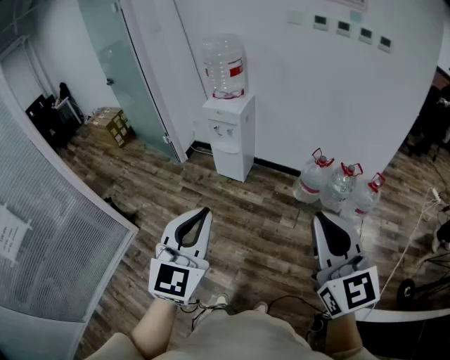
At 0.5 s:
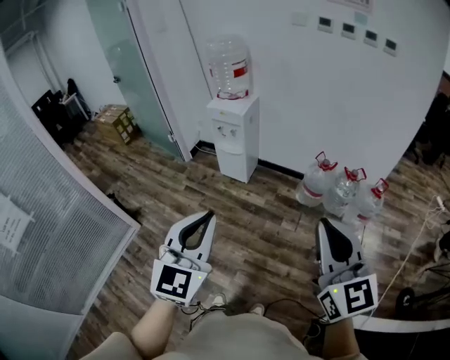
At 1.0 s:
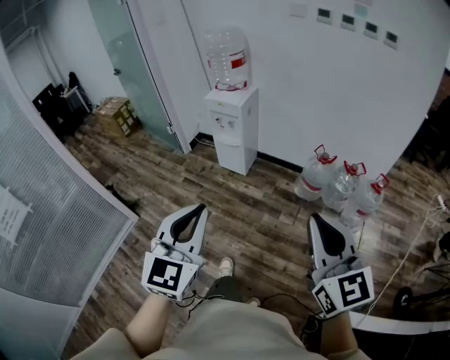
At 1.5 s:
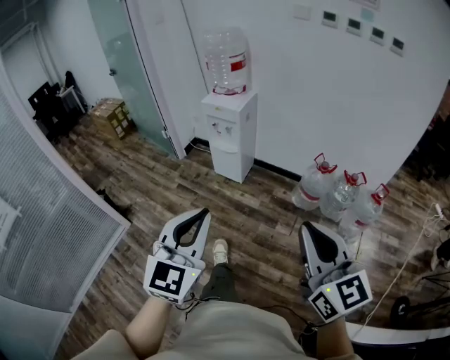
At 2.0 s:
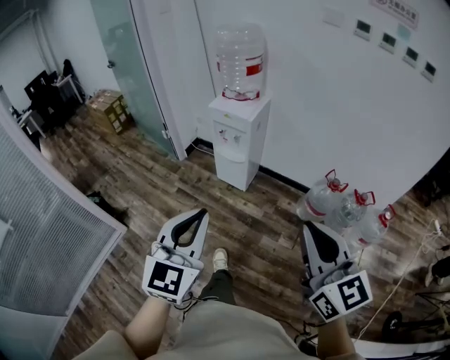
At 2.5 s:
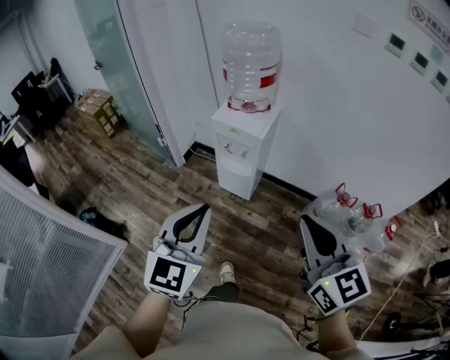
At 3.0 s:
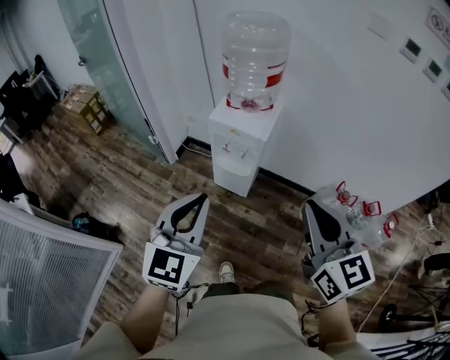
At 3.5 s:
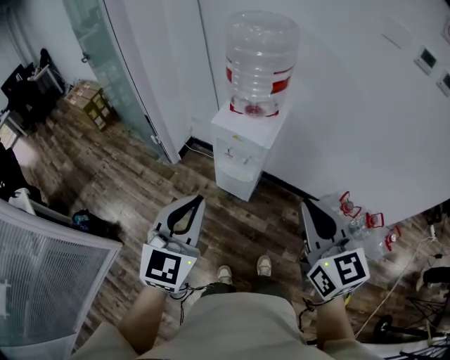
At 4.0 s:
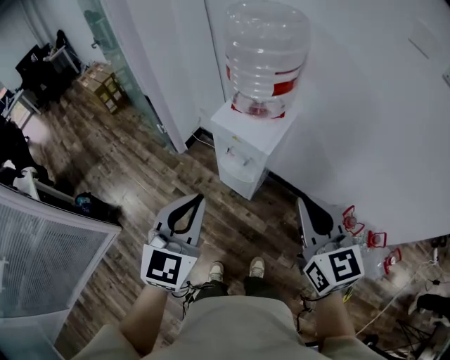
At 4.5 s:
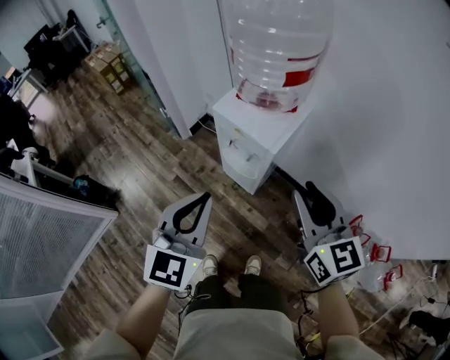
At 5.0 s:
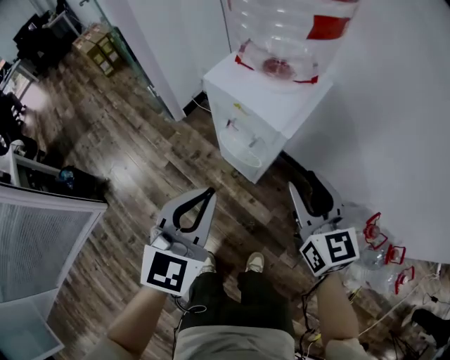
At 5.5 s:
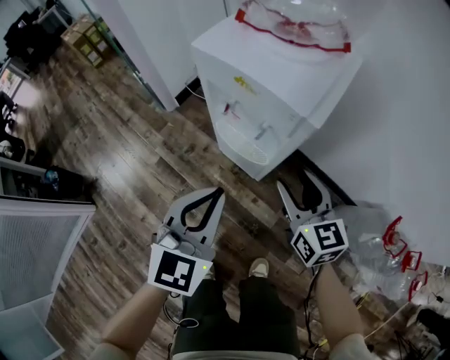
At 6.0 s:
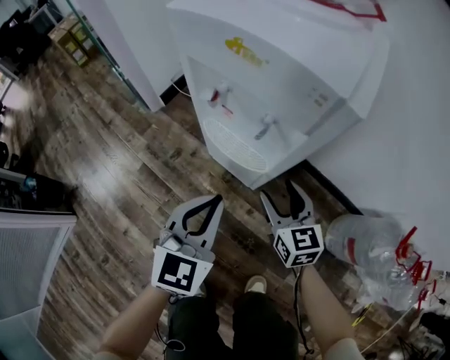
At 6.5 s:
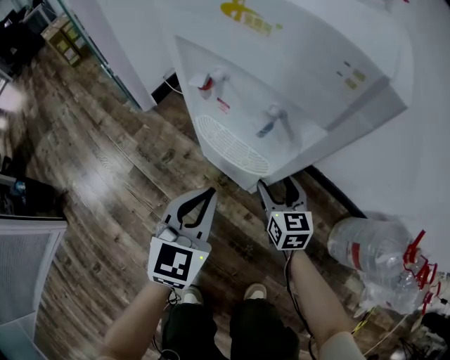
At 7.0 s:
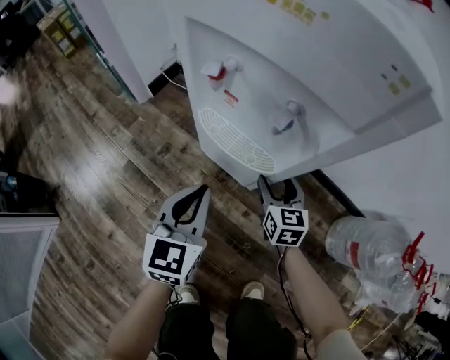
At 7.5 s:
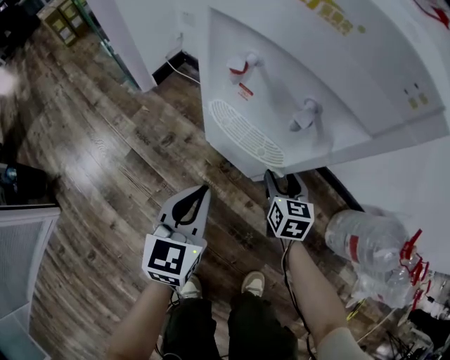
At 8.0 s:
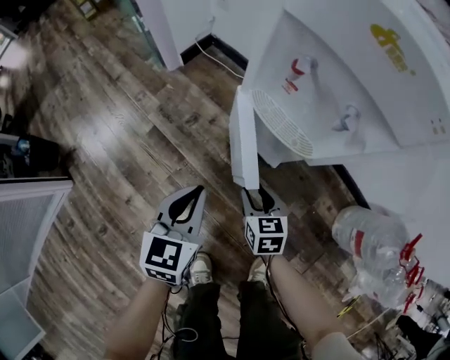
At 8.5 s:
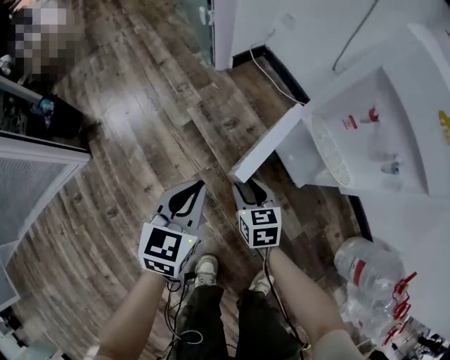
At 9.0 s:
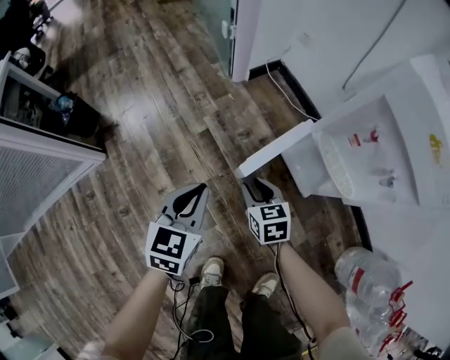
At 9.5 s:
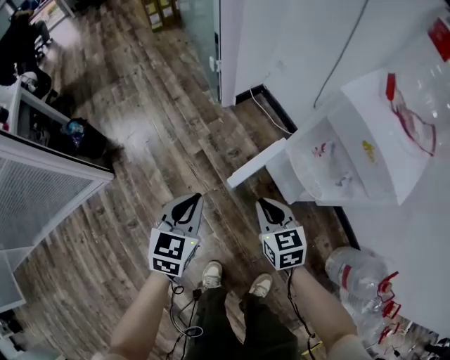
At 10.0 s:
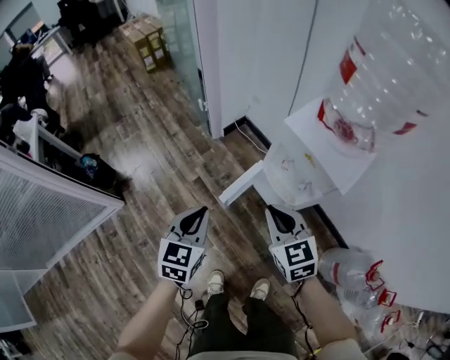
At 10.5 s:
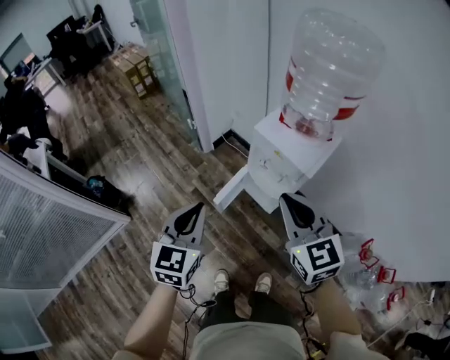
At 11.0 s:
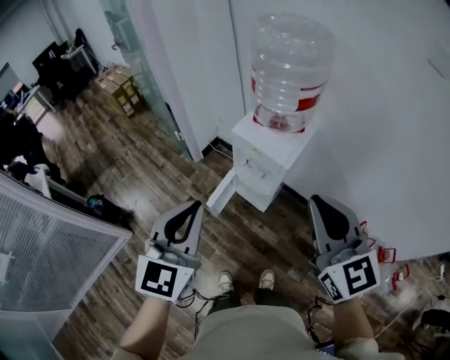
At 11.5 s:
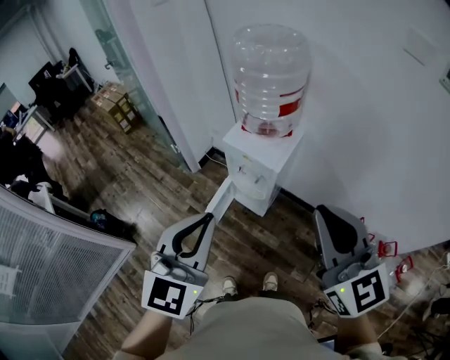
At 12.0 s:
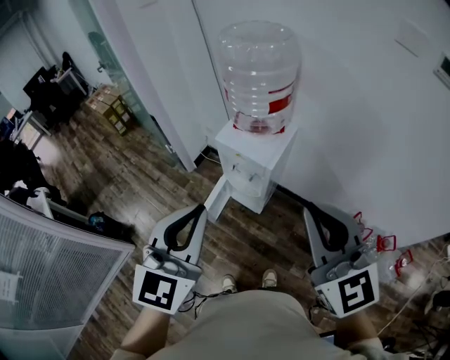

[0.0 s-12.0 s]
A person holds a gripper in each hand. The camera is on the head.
0.0 to 2.0 s: The two grippers go approximately 20 cm forward.
2.0 to 4.0 s: The two grippers go about 40 cm forward.
4.0 to 6.0 s: The grippers both shift downward by some 60 cm. The right gripper opens its fingers.
6.0 to 8.0 s: The left gripper moves to the left and downward, about 20 cm, and turns by roughly 30 degrees; the right gripper travels downward, to the left and backward by approximately 20 cm, and swivels about 20 degrees.
8.0 to 10.0 s: Both grippers travel together upward, approximately 40 cm. The right gripper rotates about 30 degrees, and closes its fingers.
10.0 to 12.0 s: The left gripper is displaced upward and to the right by roughly 40 cm, and swivels approximately 30 degrees, while the right gripper is displaced upward, backward and to the right by some 50 cm, and turns by approximately 30 degrees.

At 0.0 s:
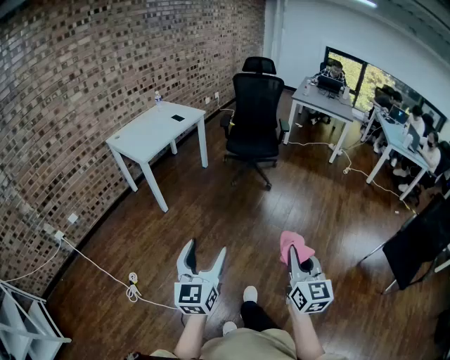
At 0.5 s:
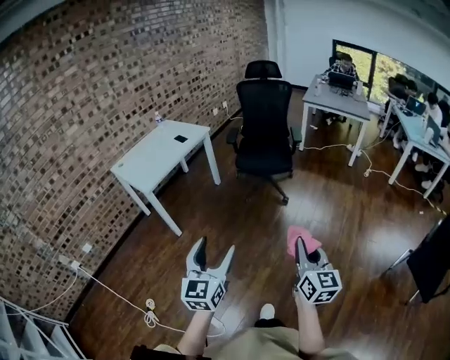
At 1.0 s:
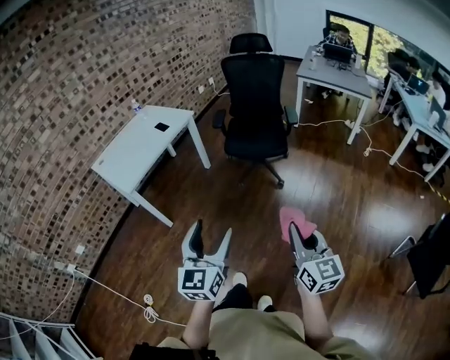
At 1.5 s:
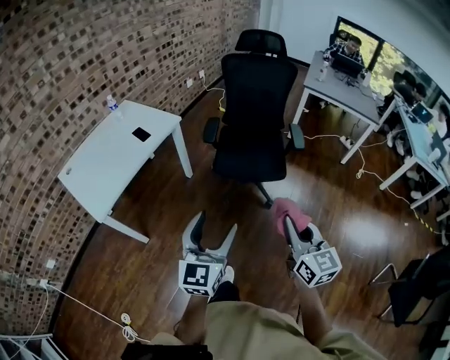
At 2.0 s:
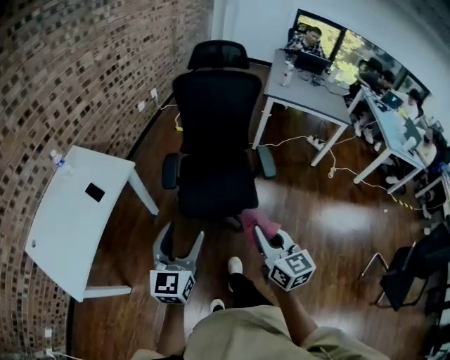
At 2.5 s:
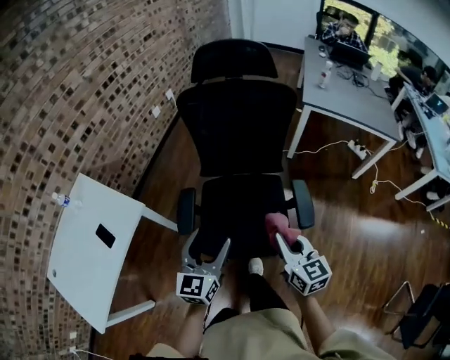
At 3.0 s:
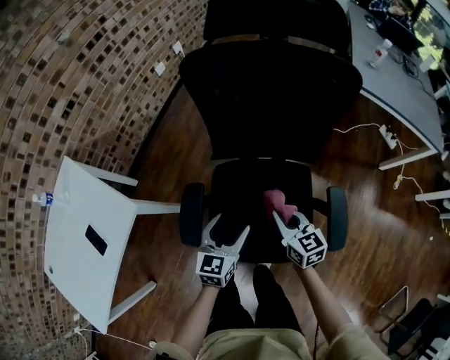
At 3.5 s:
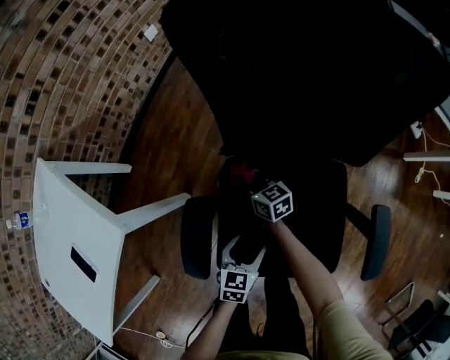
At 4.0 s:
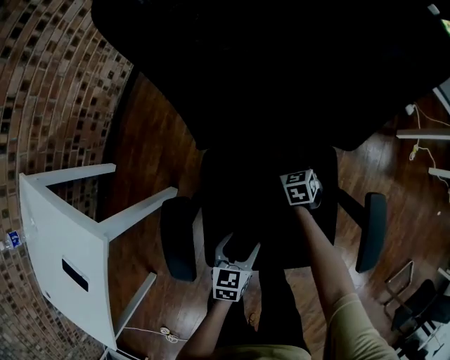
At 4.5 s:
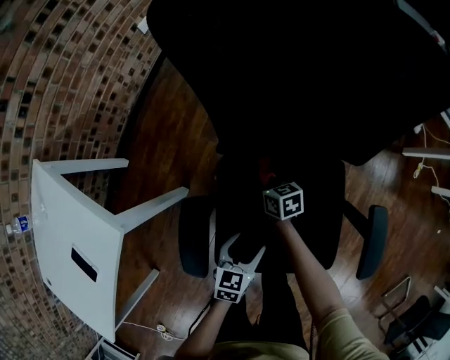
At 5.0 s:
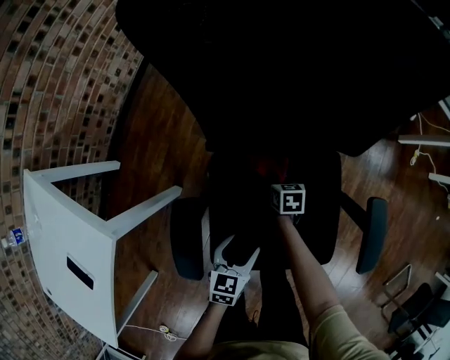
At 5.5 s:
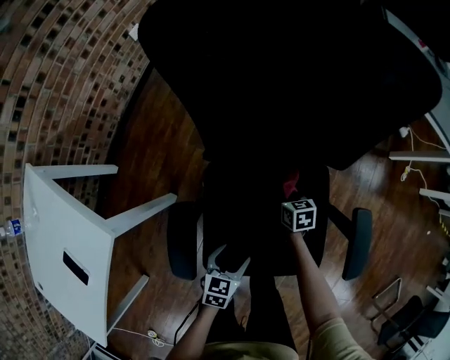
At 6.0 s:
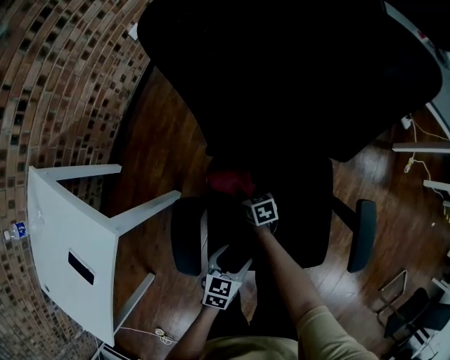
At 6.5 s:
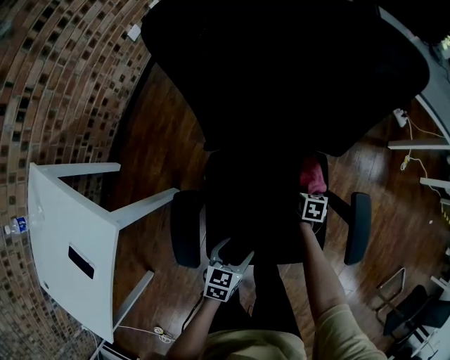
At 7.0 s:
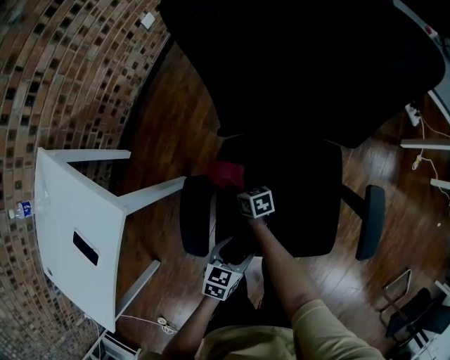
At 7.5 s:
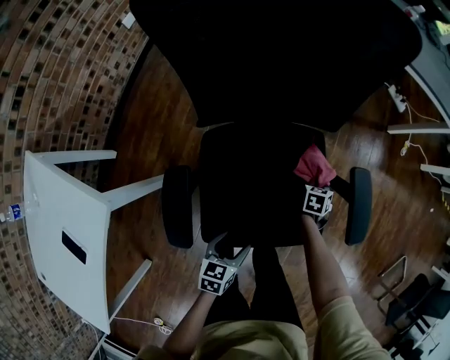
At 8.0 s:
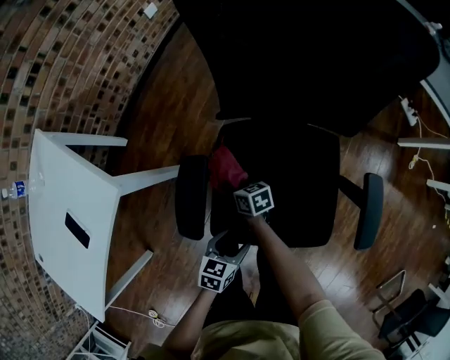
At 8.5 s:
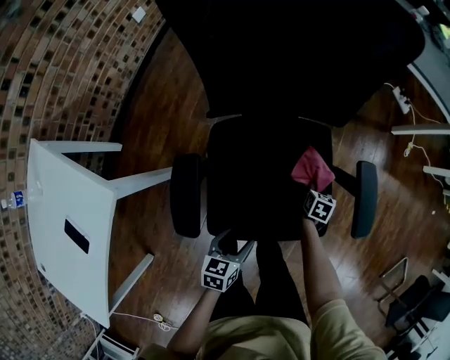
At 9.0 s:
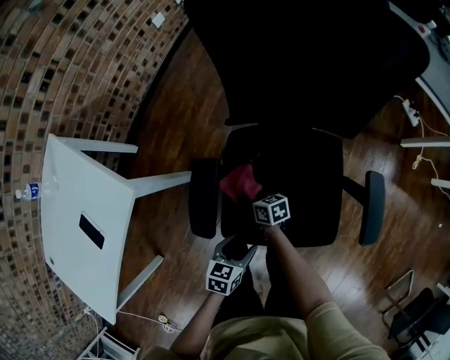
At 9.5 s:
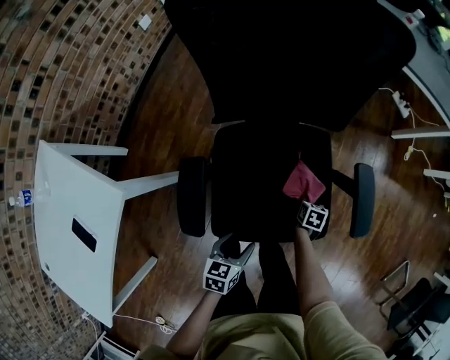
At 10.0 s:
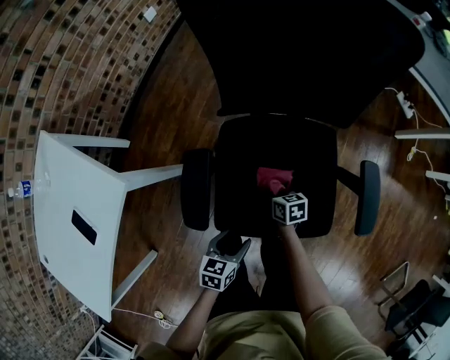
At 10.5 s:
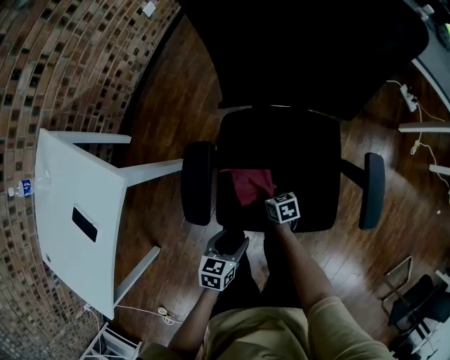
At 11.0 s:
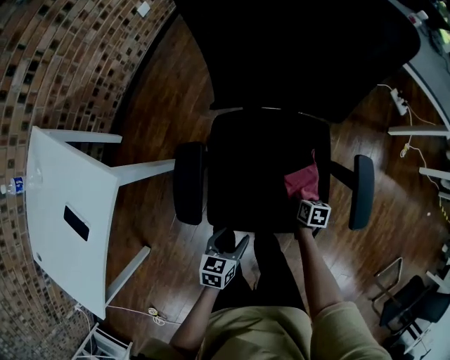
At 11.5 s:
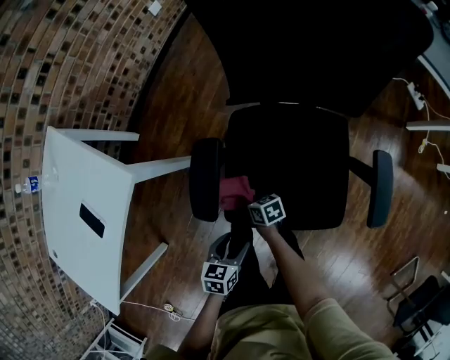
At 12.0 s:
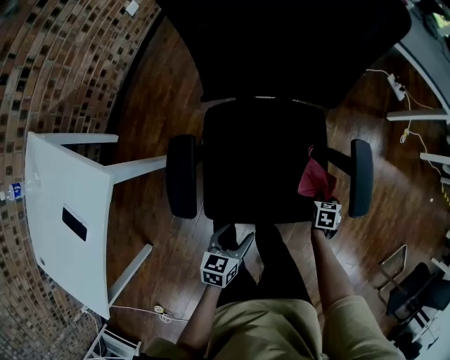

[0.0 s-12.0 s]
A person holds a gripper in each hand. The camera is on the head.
0.0 to 2.0 s: Both grippers are carried forward, about 90 cm.
2.0 to 4.0 s: The pair of grippers is taken some 50 cm. The left gripper goes roughly 50 cm downward, and angles its fingers downward, by approximately 40 degrees, while the right gripper points its fingers some 50 degrees further downward.
4.0 to 6.0 s: The left gripper moves approximately 5 cm. The right gripper moves left and right over approximately 15 cm, changing direction 2 times, and turns by approximately 30 degrees.
6.0 to 8.0 s: The left gripper changes place by about 5 cm.
8.0 to 10.0 s: The right gripper moves up and down over approximately 5 cm, changing direction 3 times.
10.0 to 12.0 s: The right gripper shifts by about 30 cm, and rotates about 40 degrees.

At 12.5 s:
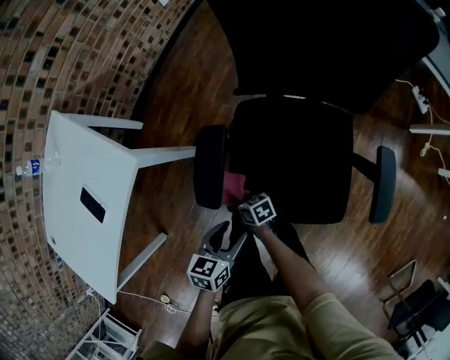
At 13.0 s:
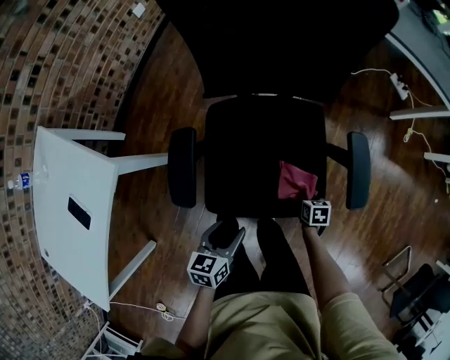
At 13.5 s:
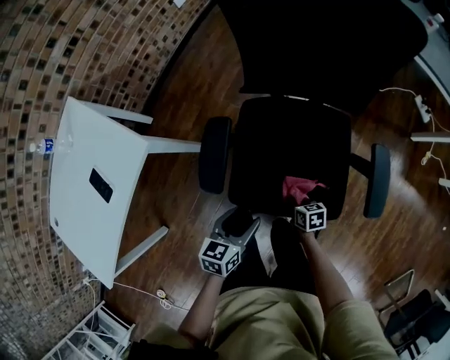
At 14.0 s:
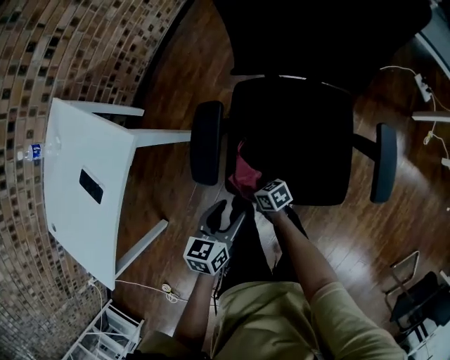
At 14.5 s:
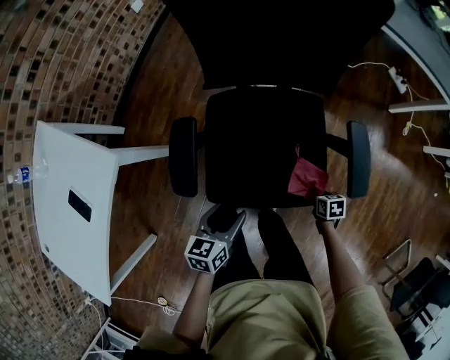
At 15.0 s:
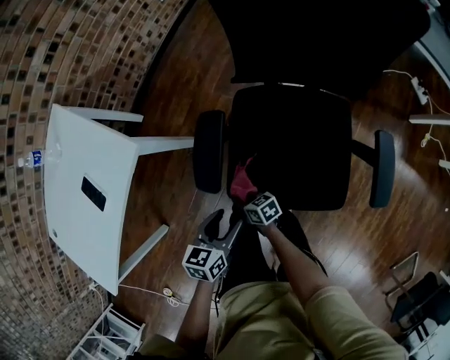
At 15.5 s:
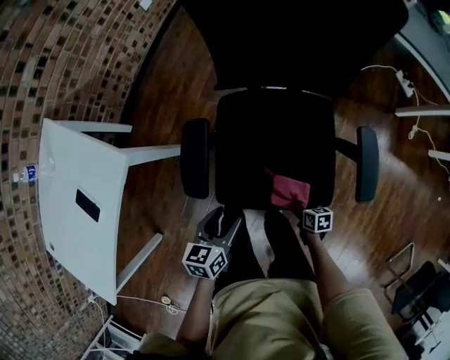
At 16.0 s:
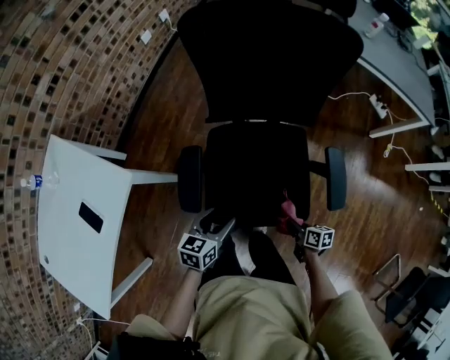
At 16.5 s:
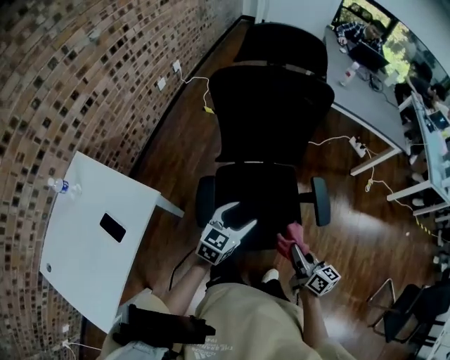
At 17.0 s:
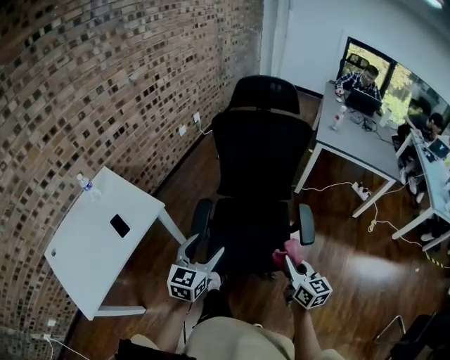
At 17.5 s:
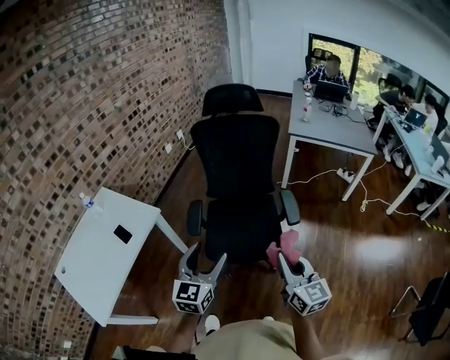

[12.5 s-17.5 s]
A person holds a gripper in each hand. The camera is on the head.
15.0 to 17.5 s: Both grippers move upward, approximately 50 cm. The right gripper angles its fingers upward, by about 30 degrees, while the left gripper angles its fingers upward, by approximately 30 degrees.
